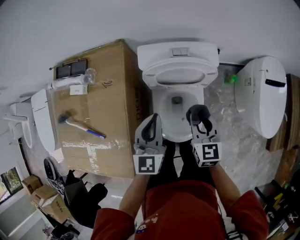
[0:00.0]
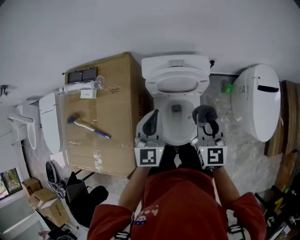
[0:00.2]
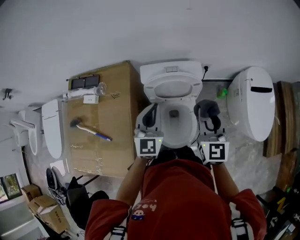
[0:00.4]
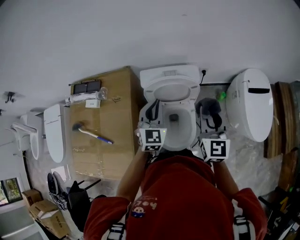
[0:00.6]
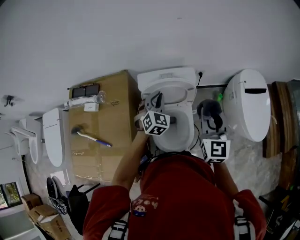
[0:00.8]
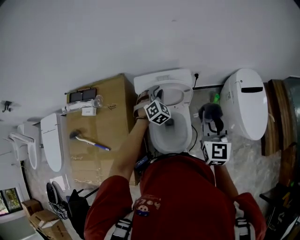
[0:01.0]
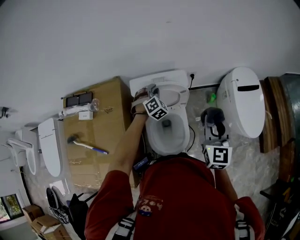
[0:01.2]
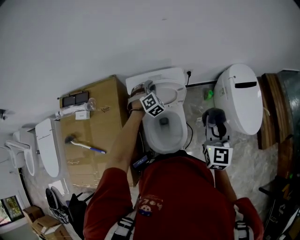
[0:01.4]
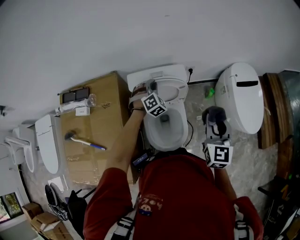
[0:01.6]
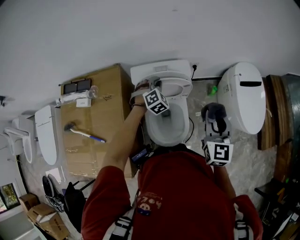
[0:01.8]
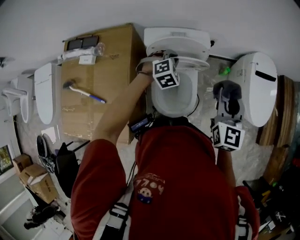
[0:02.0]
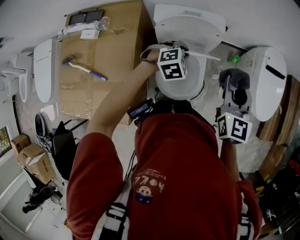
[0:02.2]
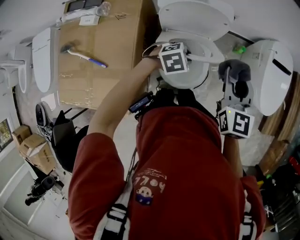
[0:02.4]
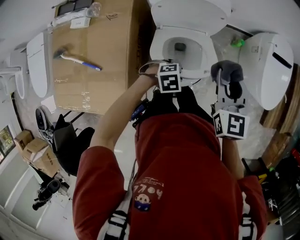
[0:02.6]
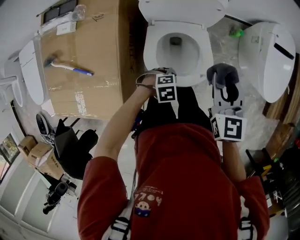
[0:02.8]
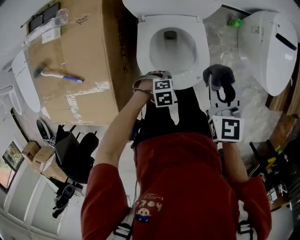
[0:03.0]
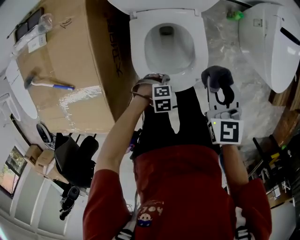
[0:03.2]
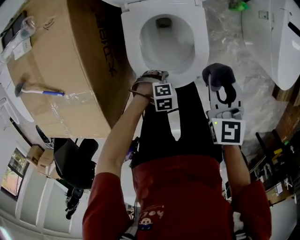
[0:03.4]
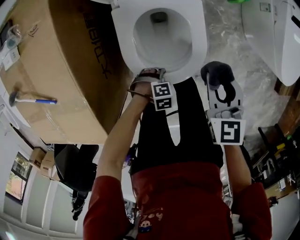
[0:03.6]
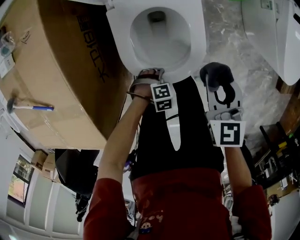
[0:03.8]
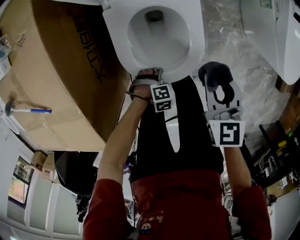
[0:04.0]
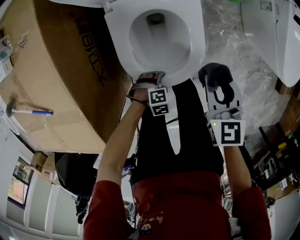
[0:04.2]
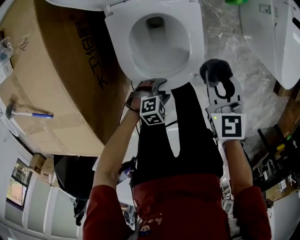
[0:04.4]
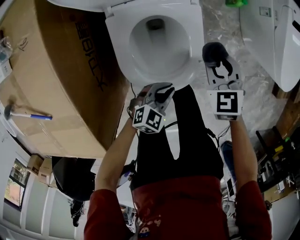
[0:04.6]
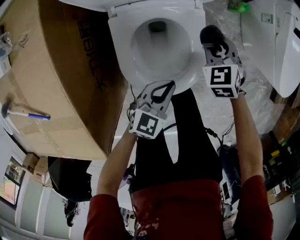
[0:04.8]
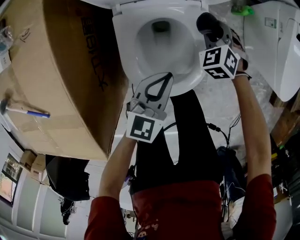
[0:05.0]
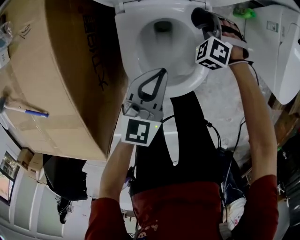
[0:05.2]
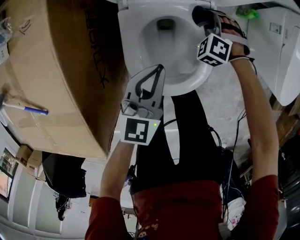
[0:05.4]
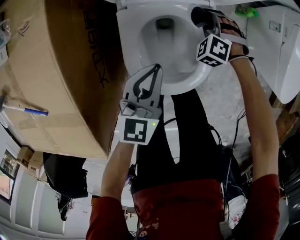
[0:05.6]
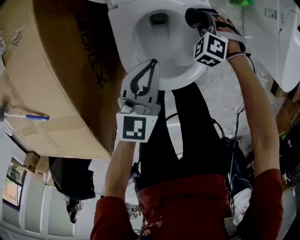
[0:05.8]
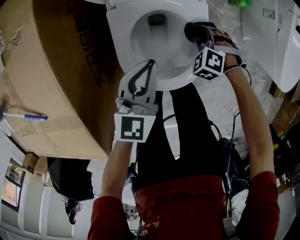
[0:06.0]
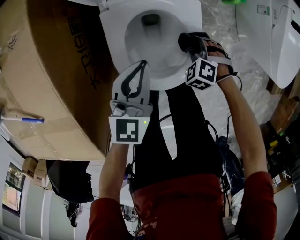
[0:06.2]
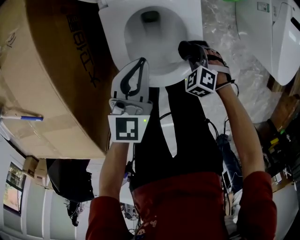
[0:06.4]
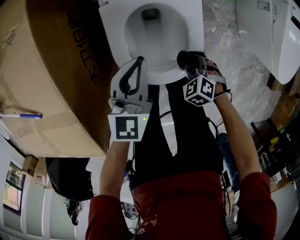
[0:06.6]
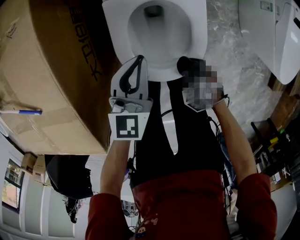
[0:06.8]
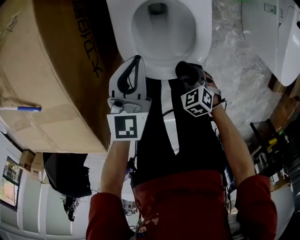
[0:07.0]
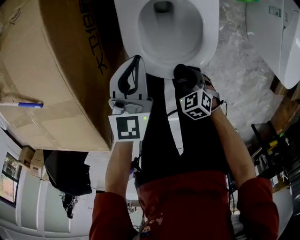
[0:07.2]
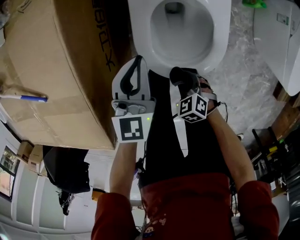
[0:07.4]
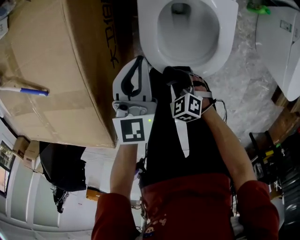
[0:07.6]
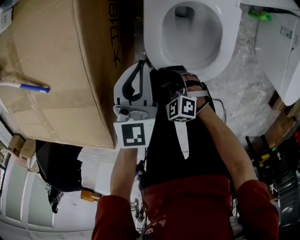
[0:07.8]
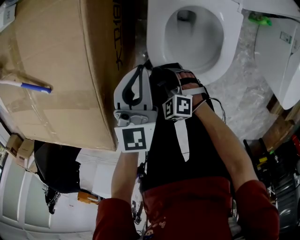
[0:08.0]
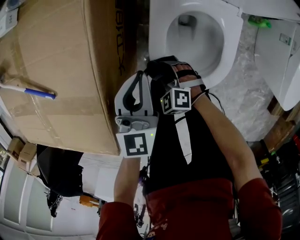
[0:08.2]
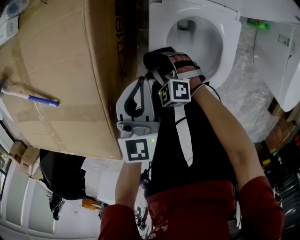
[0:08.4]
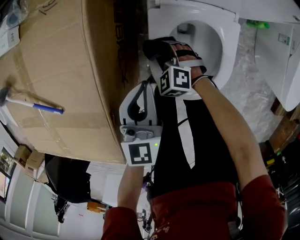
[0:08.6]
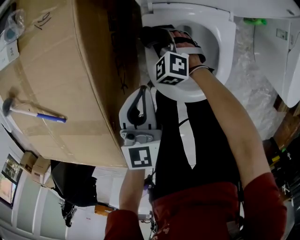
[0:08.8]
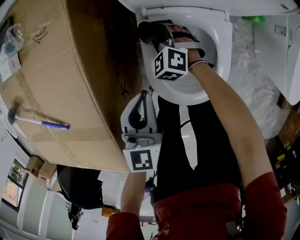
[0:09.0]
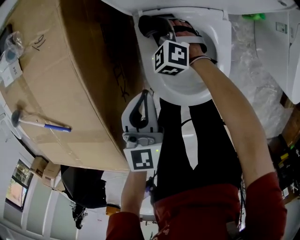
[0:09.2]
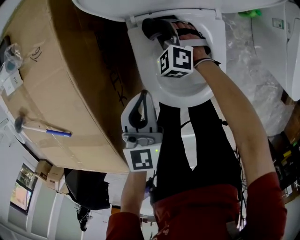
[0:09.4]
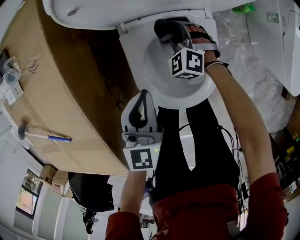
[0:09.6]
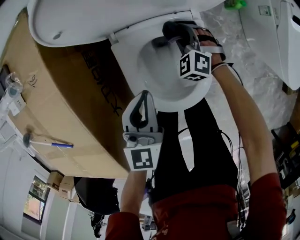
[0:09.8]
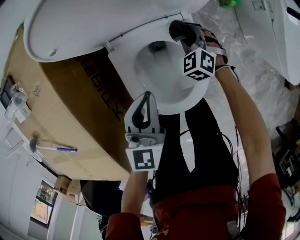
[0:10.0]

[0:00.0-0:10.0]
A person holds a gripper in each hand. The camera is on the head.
0:00.0 to 0:01.4: The right gripper goes some 25 cm upward and to the right, and changes its angle by approximately 30 degrees. The left gripper moves forward and to the right, roughly 20 cm, and rotates around the line of its fingers by some 60 degrees, clockwise from behind.
0:01.4 to 0:02.8: The left gripper changes place by some 40 cm, swivels roughly 60 degrees, and opens its fingers; the right gripper moves downward, roughly 10 cm, and turns by approximately 20 degrees.
0:02.8 to 0:04.2: The grippers both shift downward by approximately 25 cm.
0:04.2 to 0:05.8: The left gripper moves upward, about 20 cm, tilts its fingers approximately 50 degrees upward, and closes up; the right gripper goes approximately 20 cm downward, and rolls counterclockwise, seen from behind, by about 70 degrees.
0:05.8 to 0:07.2: The right gripper changes place by roughly 30 cm, and rotates about 40 degrees. The left gripper moves roughly 5 cm.
0:07.2 to 0:08.6: The right gripper is displaced forward and to the left by about 30 cm, and turns by roughly 40 degrees. Meanwhile the left gripper shifts about 5 cm to the left.
0:08.6 to 0:10.0: The left gripper ends up approximately 15 cm from where it was. The right gripper shifts by some 30 cm, and swivels roughly 30 degrees.

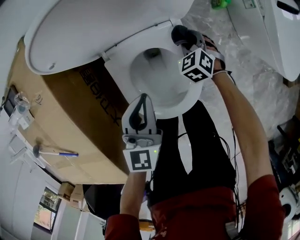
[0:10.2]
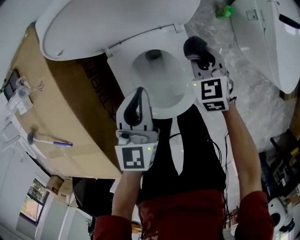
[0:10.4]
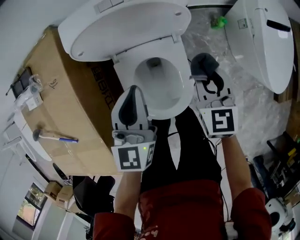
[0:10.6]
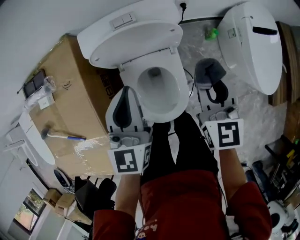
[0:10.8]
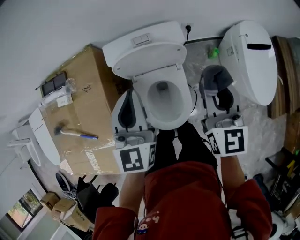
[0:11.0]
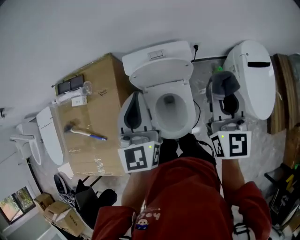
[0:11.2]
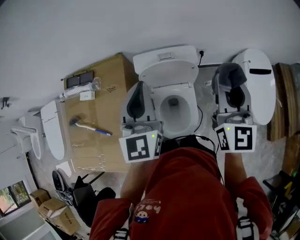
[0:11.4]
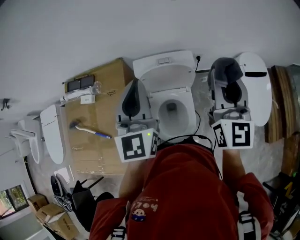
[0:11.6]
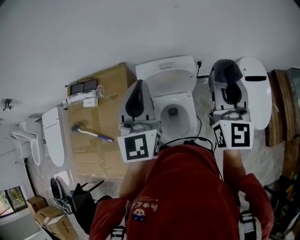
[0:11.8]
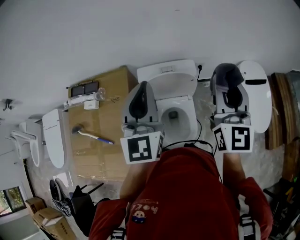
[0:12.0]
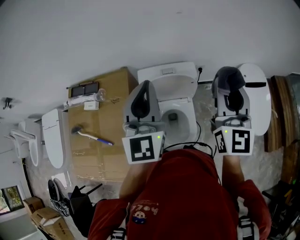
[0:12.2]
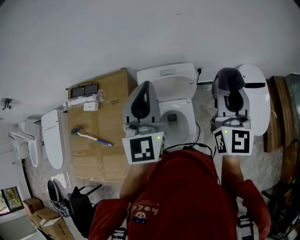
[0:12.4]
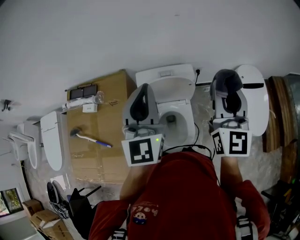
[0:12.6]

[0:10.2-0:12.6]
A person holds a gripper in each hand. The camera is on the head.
0:10.2 to 0:11.4: Both grippers travel together upward, roughly 60 cm. The right gripper tips its fingers upward by about 60 degrees; the left gripper changes its angle by some 30 degrees.
0:11.4 to 0:12.6: Both grippers travel together upward, about 5 cm.

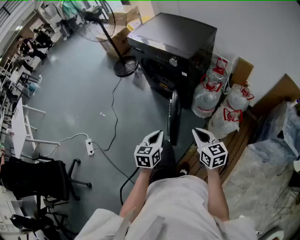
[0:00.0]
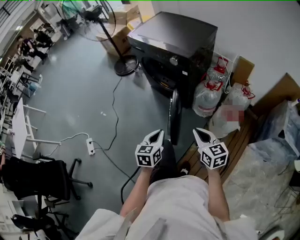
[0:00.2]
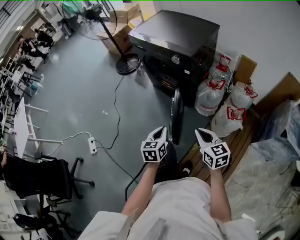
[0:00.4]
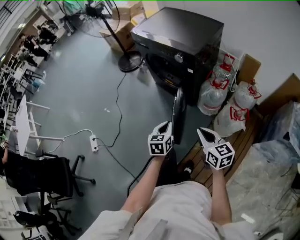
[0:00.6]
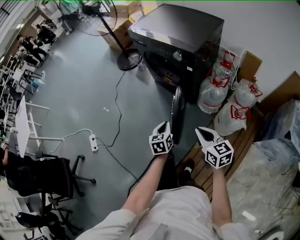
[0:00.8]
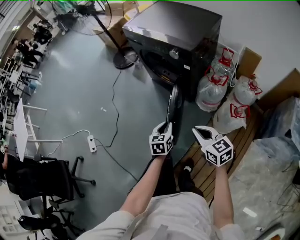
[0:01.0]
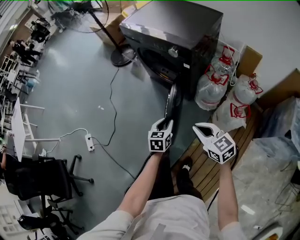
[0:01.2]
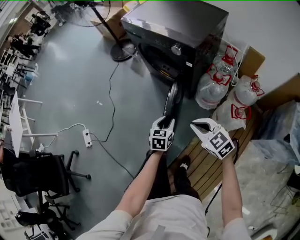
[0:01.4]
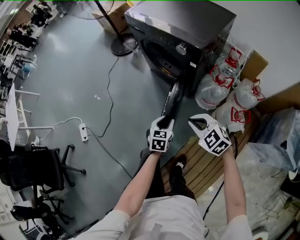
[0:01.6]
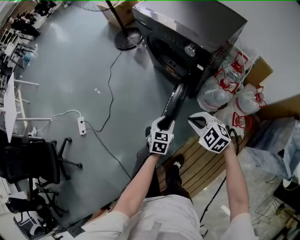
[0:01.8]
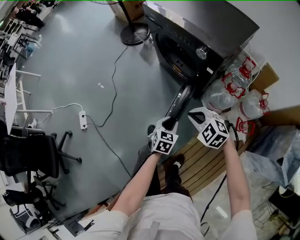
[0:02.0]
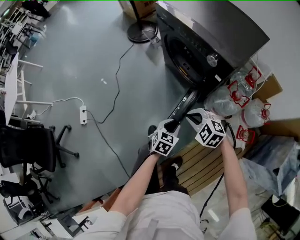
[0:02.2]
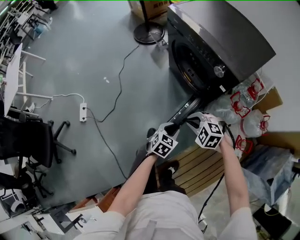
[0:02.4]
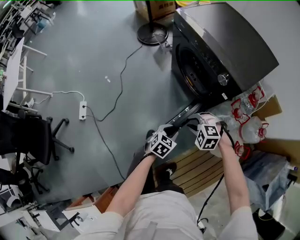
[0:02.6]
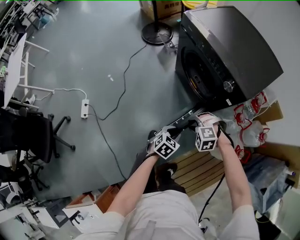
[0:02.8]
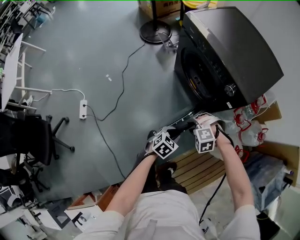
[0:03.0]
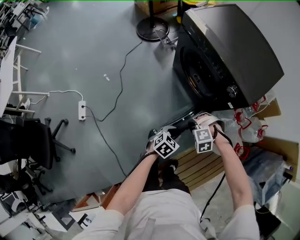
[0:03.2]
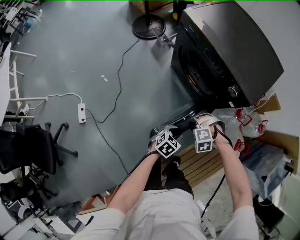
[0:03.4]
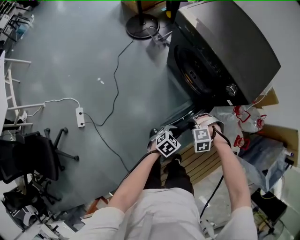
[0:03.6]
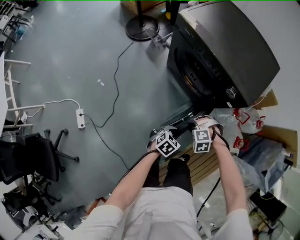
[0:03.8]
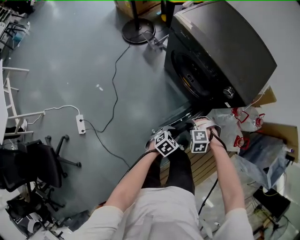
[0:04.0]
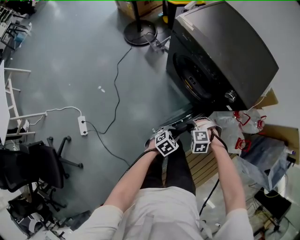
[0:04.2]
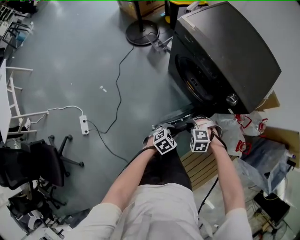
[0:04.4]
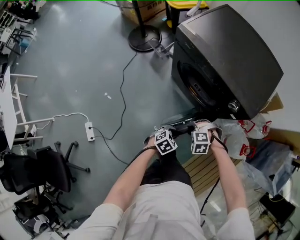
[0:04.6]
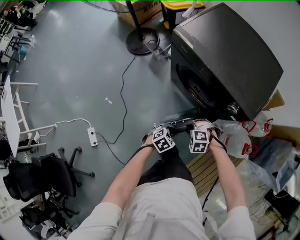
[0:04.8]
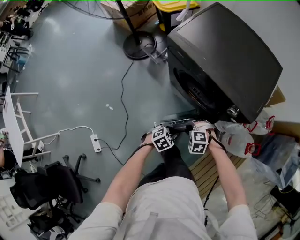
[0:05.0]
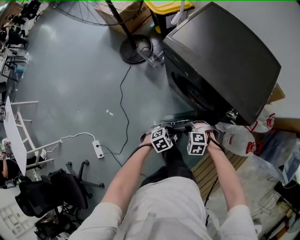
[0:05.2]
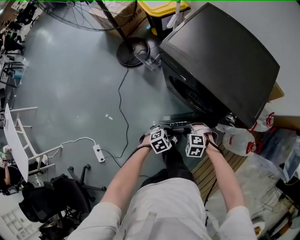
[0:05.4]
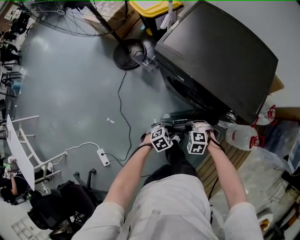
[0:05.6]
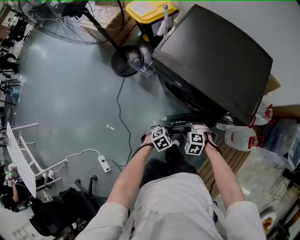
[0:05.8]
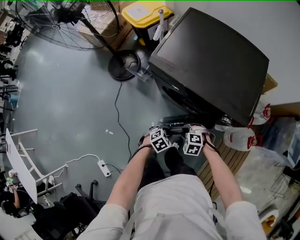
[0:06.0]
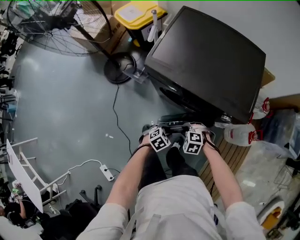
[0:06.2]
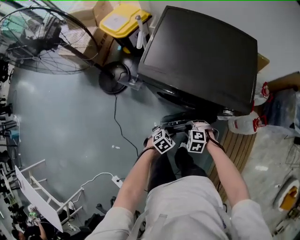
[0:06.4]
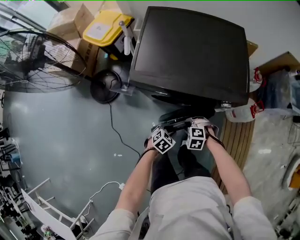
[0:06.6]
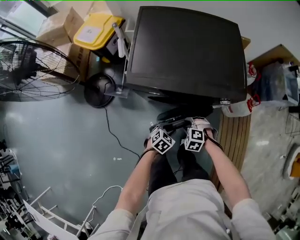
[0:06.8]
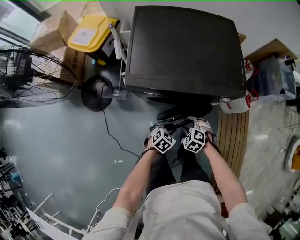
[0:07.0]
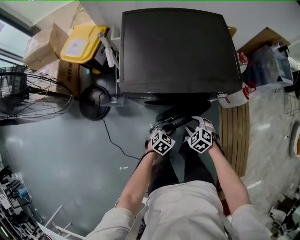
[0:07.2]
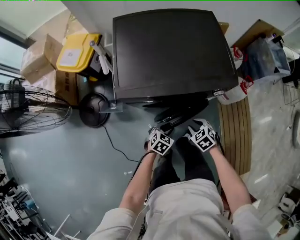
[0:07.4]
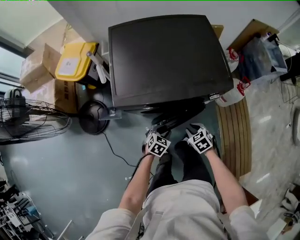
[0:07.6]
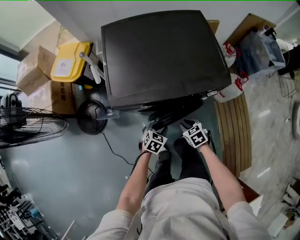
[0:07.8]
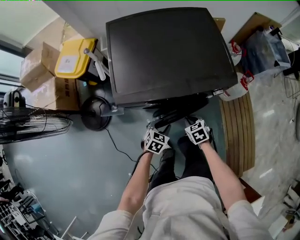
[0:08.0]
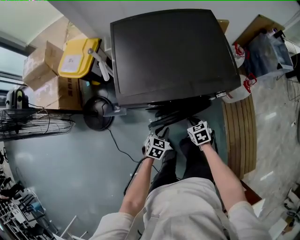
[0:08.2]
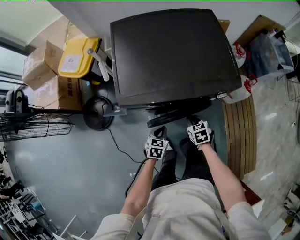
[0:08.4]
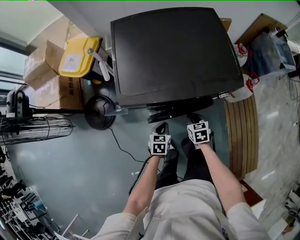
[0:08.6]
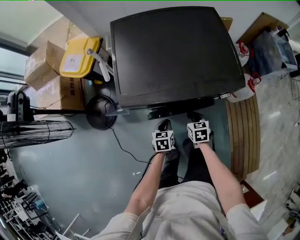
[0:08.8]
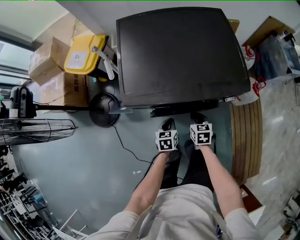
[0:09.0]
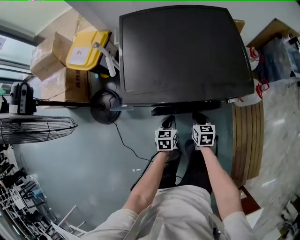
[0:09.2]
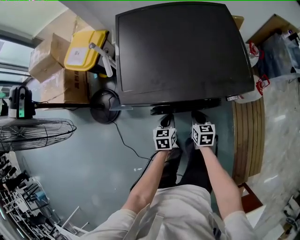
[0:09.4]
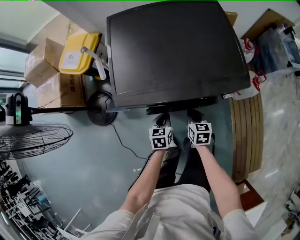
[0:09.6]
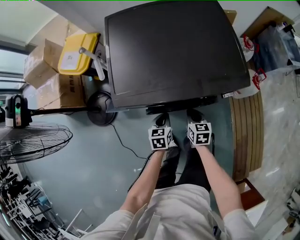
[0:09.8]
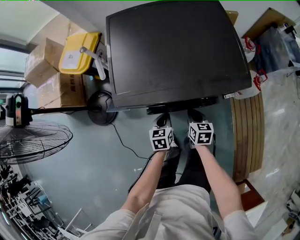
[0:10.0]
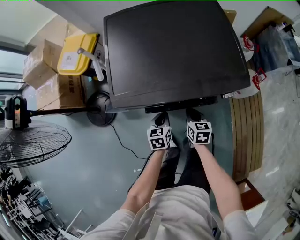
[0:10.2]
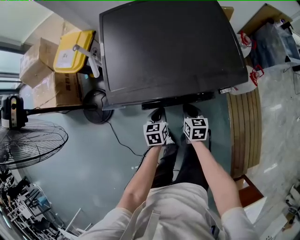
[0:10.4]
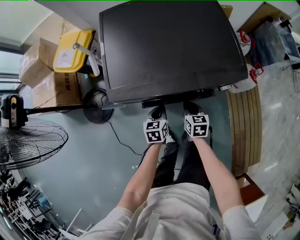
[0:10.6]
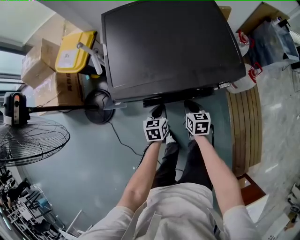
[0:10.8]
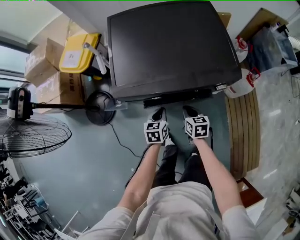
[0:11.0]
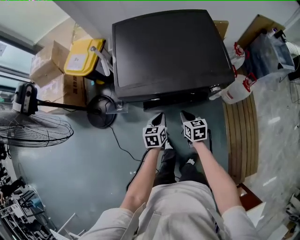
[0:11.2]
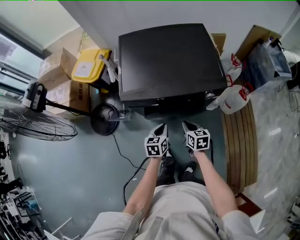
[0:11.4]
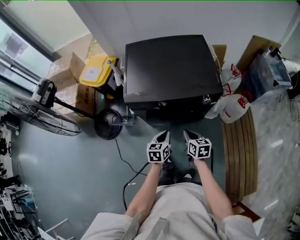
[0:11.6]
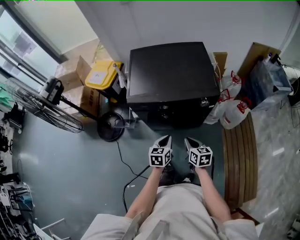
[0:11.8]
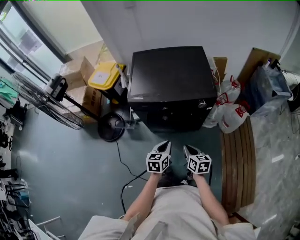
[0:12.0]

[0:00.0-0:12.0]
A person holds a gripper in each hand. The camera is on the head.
0:00.0 to 0:01.6: The left gripper heads downward and forward, covering roughly 20 cm, and opens; the right gripper moves forward and downward, about 15 cm, and changes its angle by about 50 degrees.
0:01.6 to 0:03.0: The right gripper moves roughly 20 cm, tilts its fingers roughly 30 degrees downward, and opens its fingers. The left gripper shifts by roughly 10 cm.
0:03.0 to 0:04.4: The right gripper shifts by approximately 10 cm, and turns by approximately 20 degrees; the left gripper ends up about 10 cm from where it was.
0:04.4 to 0:06.0: The right gripper changes place by about 15 cm, and rotates some 30 degrees, while the left gripper moves about 20 cm, and changes its angle by approximately 30 degrees.
0:06.0 to 0:07.6: The left gripper ends up roughly 10 cm from where it was; the right gripper changes place by some 5 cm, and rolls clockwise, seen from behind, by some 80 degrees.
0:07.6 to 0:09.0: The right gripper shifts approximately 10 cm forward, turns by roughly 30 degrees, and closes. The left gripper goes about 5 cm forward, swivels approximately 40 degrees, and closes its fingers.
0:09.0 to 0:10.4: The grippers make only small movements.
0:10.4 to 0:12.0: The grippers both shift backward and upward by roughly 30 cm.
